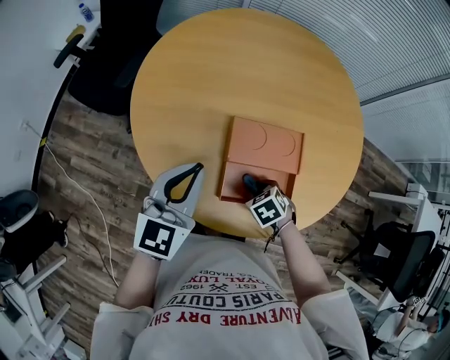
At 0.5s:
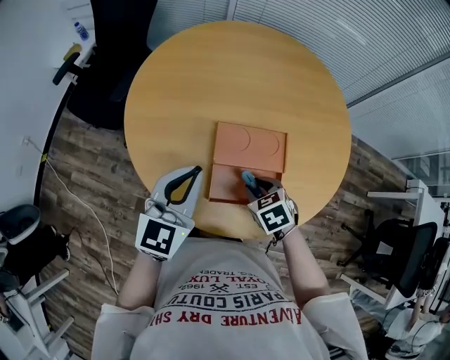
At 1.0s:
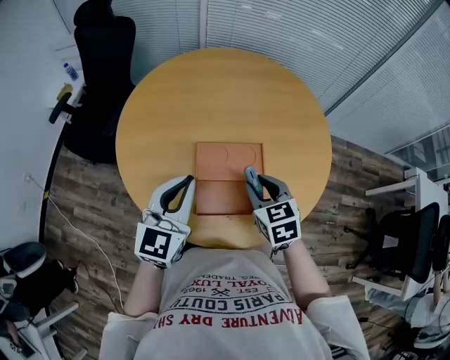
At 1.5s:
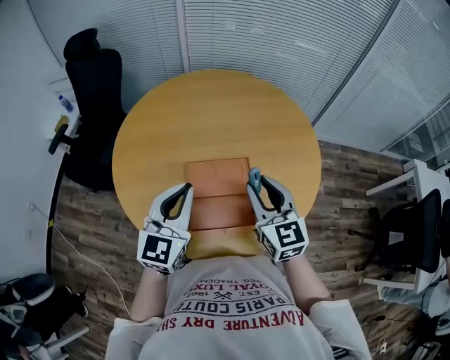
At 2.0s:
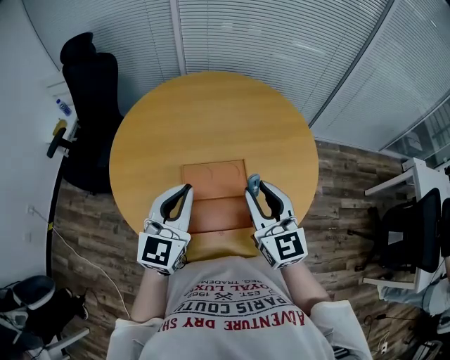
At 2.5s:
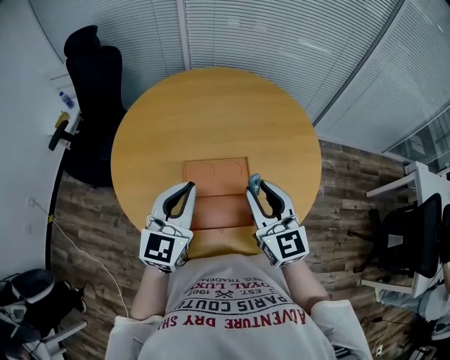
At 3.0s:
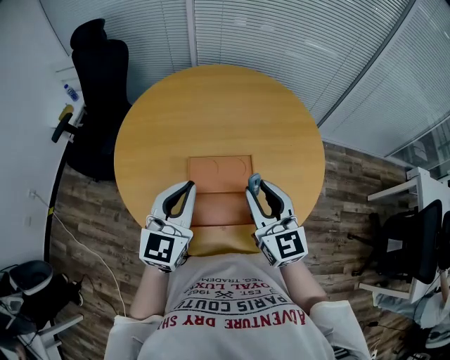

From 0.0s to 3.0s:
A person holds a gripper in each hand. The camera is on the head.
From 0.0s to 1.5s: The right gripper is displaced upward by approximately 30 cm, and tips its fingers upward by roughly 60 degrees. The left gripper moves approximately 15 cm.
From 1.5s to 3.0s: The grippers make only small movements.

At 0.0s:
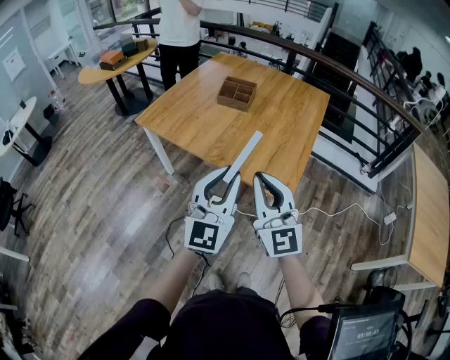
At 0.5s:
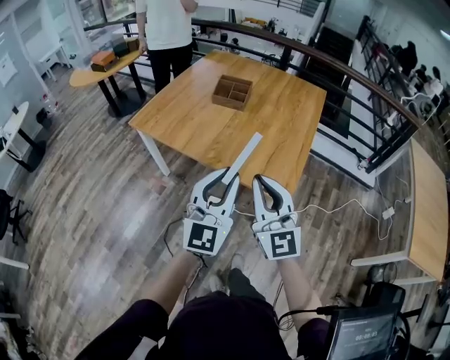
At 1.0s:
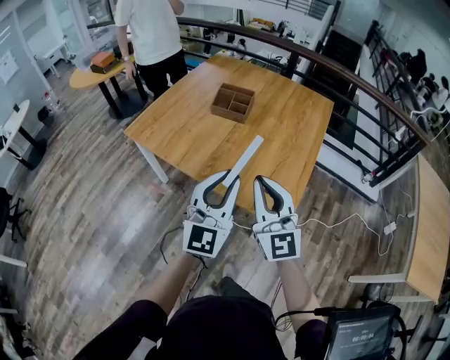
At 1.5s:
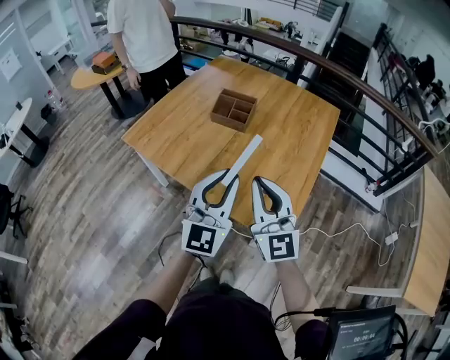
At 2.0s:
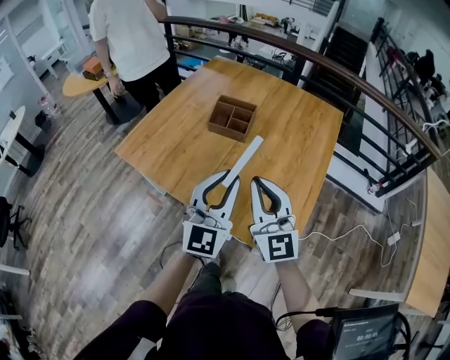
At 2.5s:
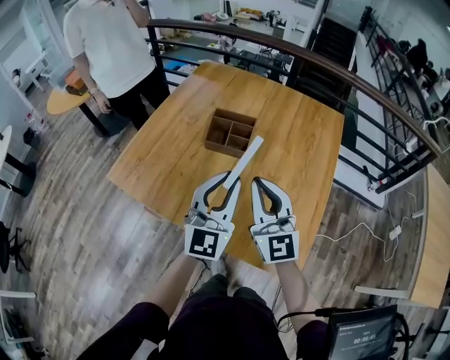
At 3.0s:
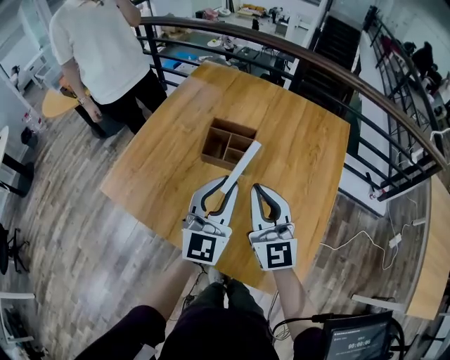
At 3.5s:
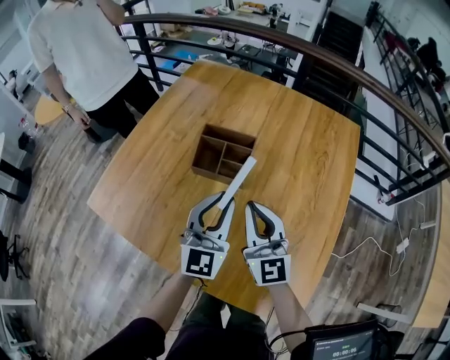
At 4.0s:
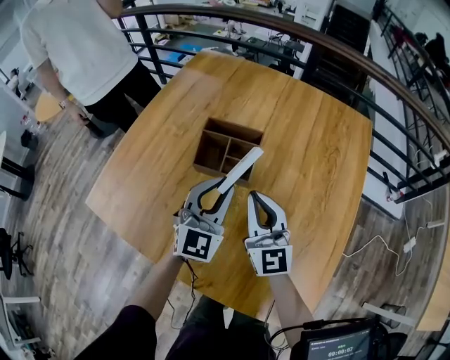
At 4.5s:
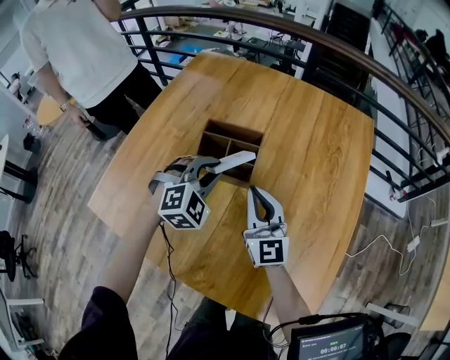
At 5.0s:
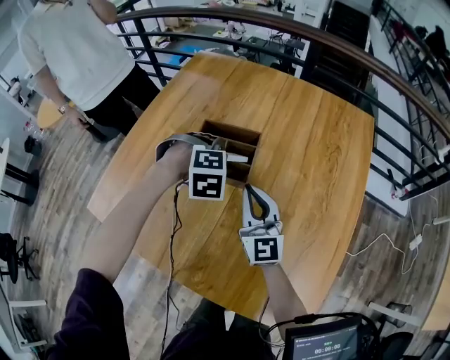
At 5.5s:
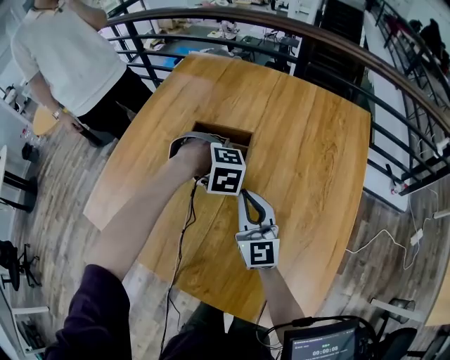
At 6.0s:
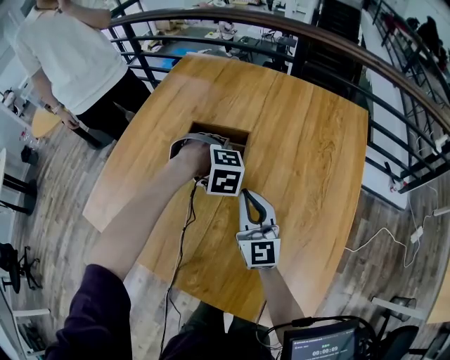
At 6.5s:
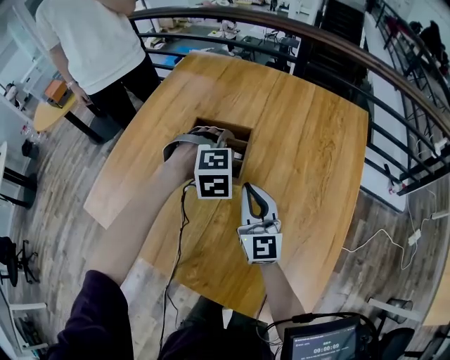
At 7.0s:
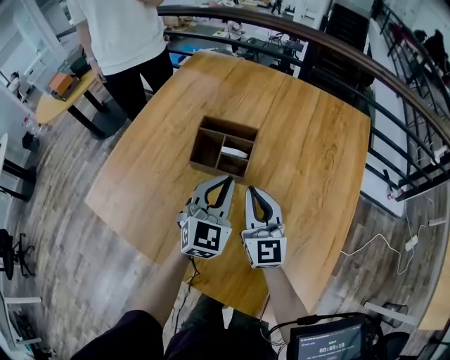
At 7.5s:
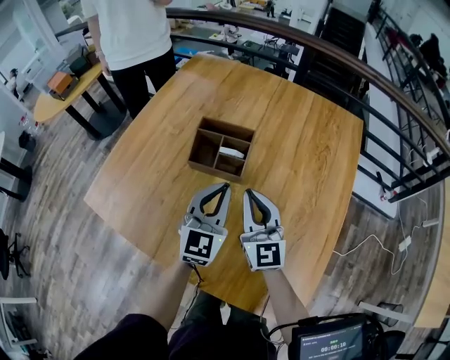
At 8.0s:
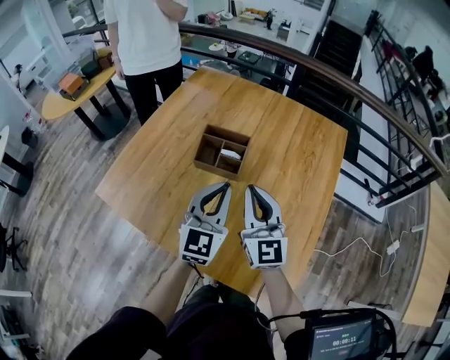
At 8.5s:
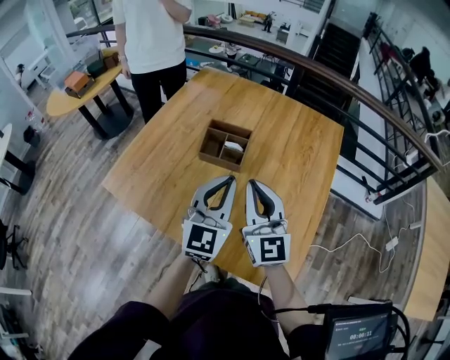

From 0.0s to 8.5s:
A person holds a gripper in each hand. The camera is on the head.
From 0.0s to 2.0s: Both grippers travel together forward, approximately 30 cm.
From 2.0s to 4.0s: Both grippers travel together forward and downward, roughly 40 cm.
From 4.0s to 6.5s: The left gripper goes about 10 cm forward, downward and to the right, points its fingers roughly 50 degrees further downward, and opens its fingers, while the right gripper moves some 5 cm.
From 6.5s to 8.5s: The left gripper goes some 35 cm backward and upward, angles its fingers upward, by approximately 60 degrees, and closes, while the right gripper is displaced upward and backward by roughly 25 cm.

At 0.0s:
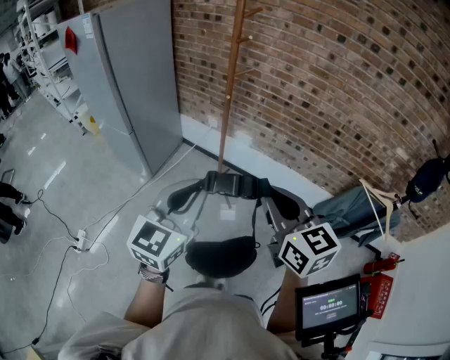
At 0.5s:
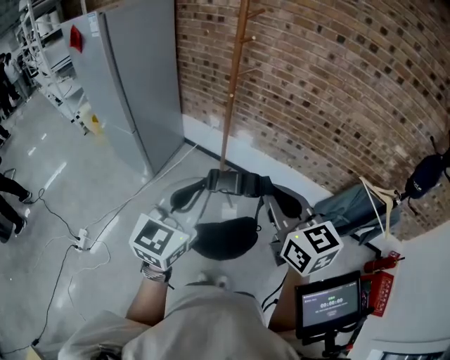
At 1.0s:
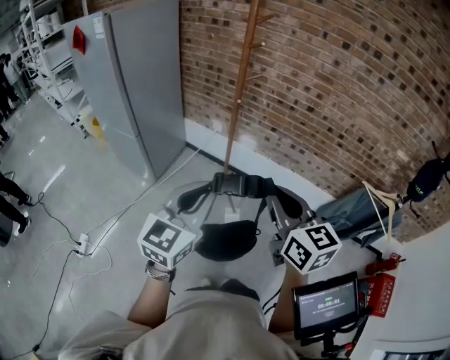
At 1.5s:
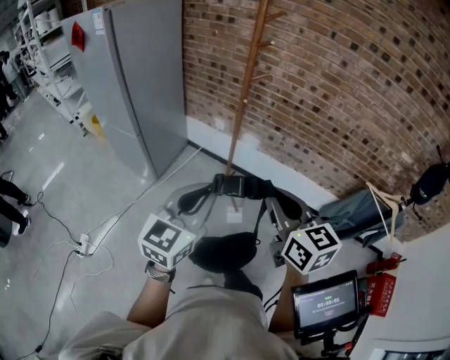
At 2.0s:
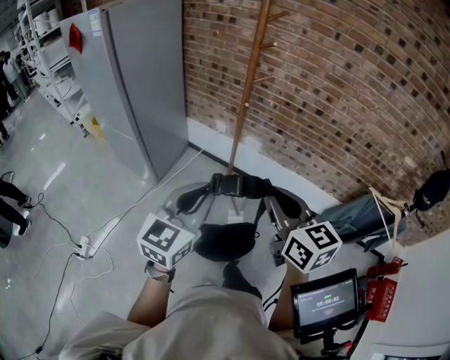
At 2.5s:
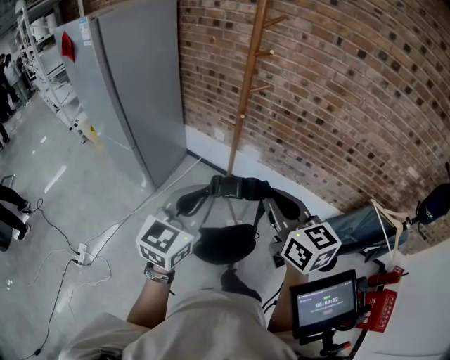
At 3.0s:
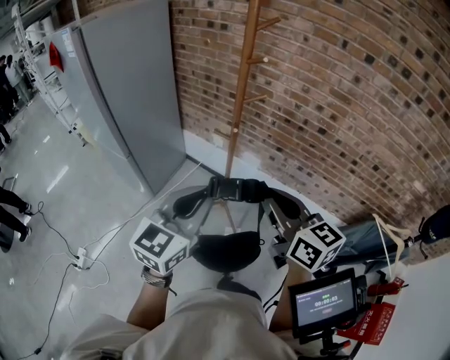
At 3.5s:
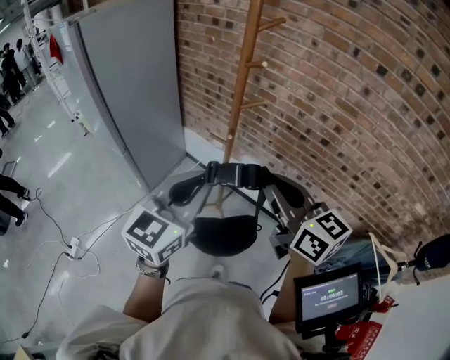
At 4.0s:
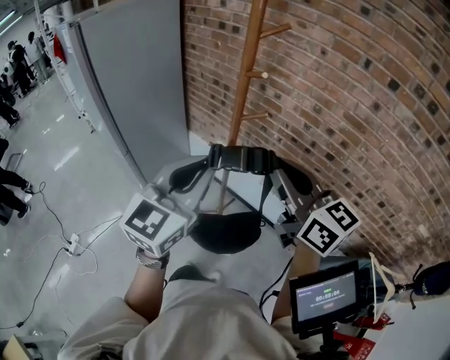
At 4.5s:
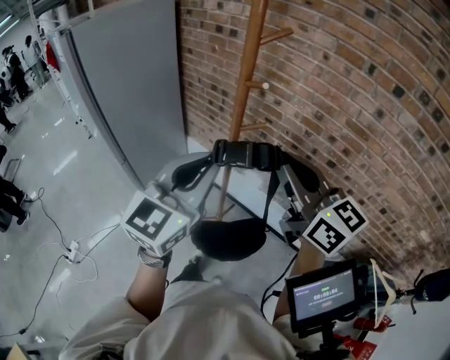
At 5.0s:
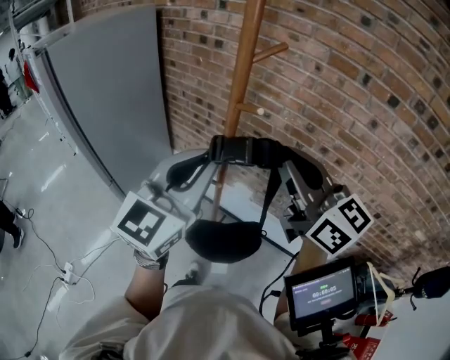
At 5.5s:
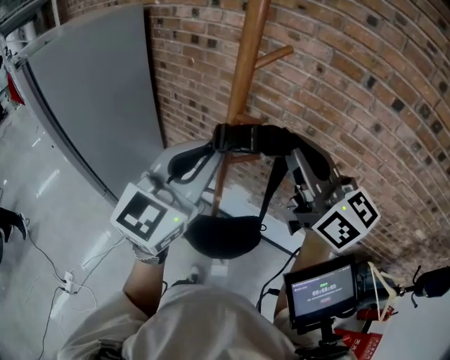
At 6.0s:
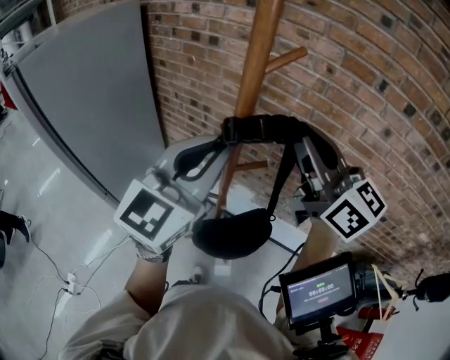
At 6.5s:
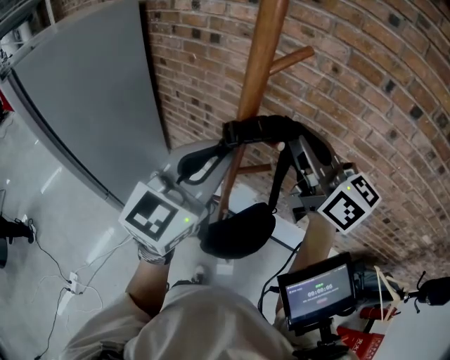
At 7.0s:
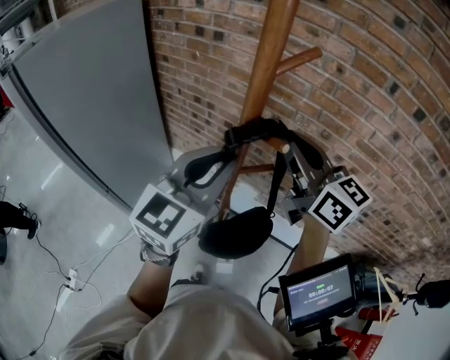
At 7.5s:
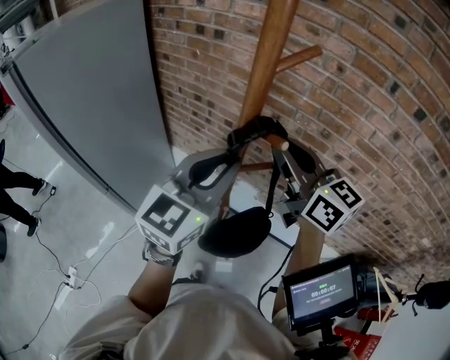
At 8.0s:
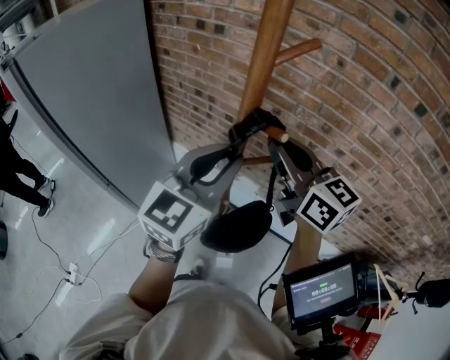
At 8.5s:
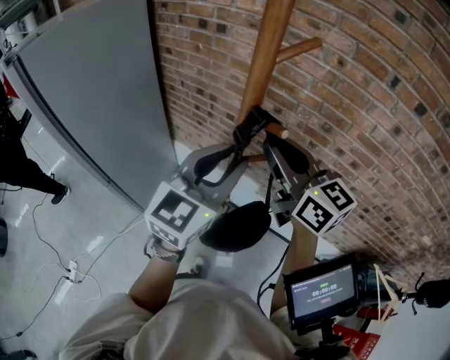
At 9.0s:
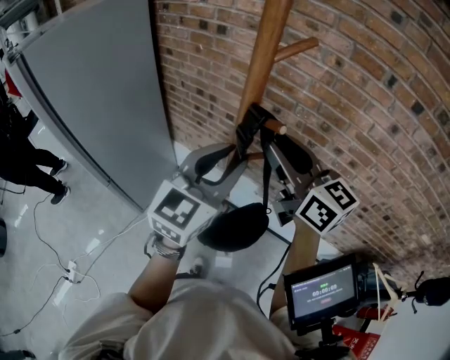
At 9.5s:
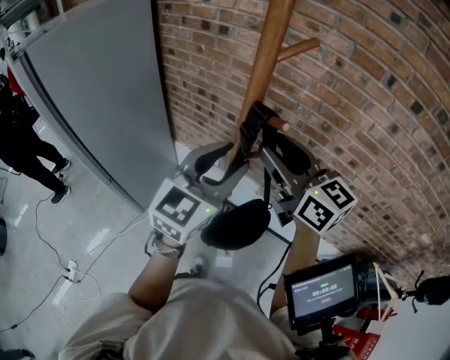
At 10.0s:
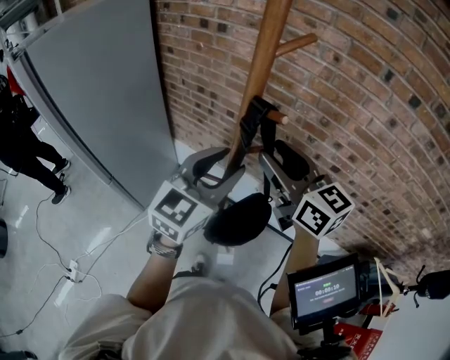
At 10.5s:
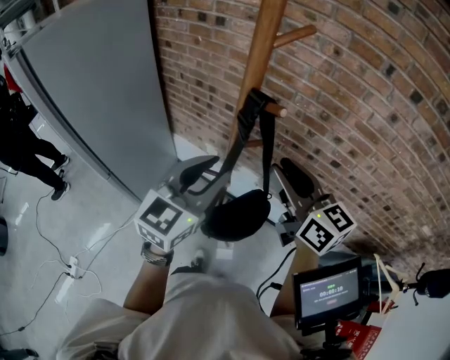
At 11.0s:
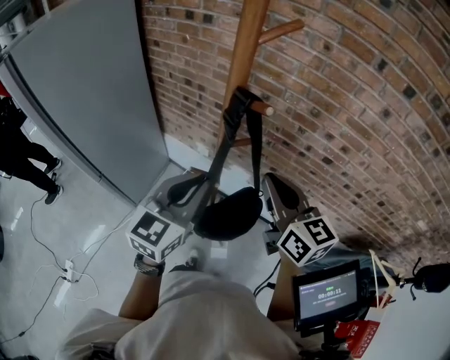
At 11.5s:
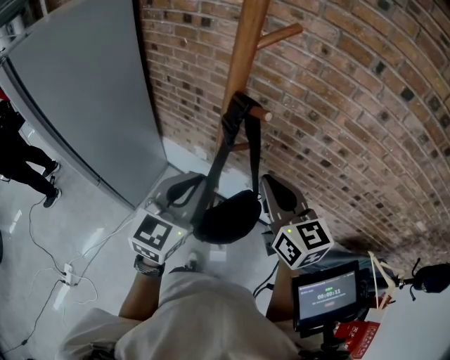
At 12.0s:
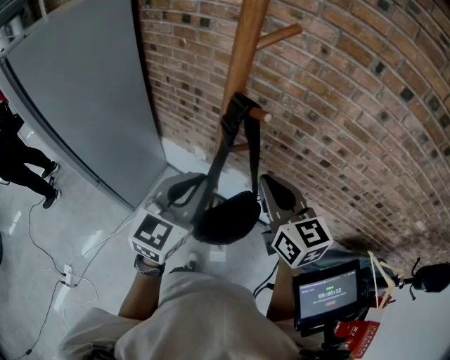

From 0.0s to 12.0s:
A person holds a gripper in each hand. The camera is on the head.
From 0.0s to 2.0s: The grippers both shift to the left by about 5 cm.
From 2.0s to 4.0s: The right gripper is displaced forward by approximately 25 cm, and swivels some 20 degrees, while the left gripper shifts some 25 cm forward and to the right.
From 4.0s to 6.0s: The left gripper is displaced forward by approximately 20 cm, while the right gripper travels forward and upward by some 20 cm.
From 6.0s to 8.0s: Both grippers move downward, some 10 cm.
From 8.0s to 10.0s: The left gripper opens up. Meanwhile the right gripper opens its fingers.
From 10.0s to 12.0s: The right gripper goes about 5 cm downward, and closes. The left gripper shifts by roughly 5 cm, and closes its fingers.

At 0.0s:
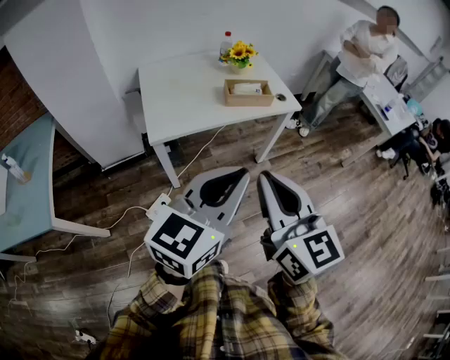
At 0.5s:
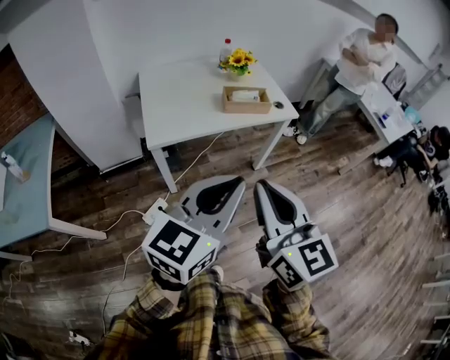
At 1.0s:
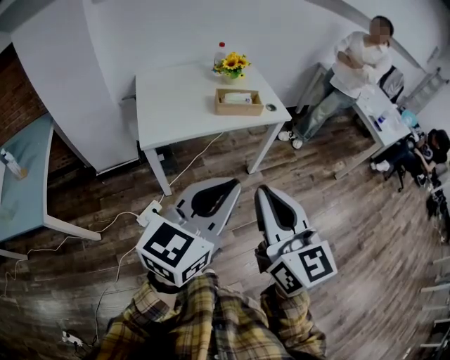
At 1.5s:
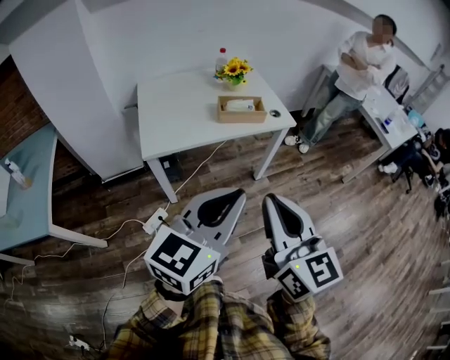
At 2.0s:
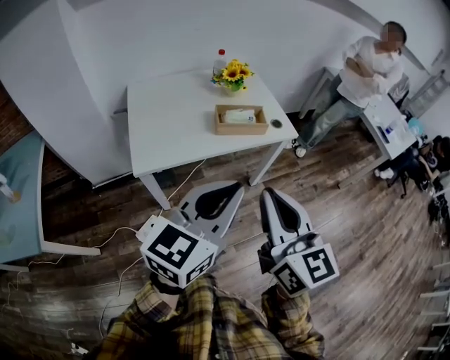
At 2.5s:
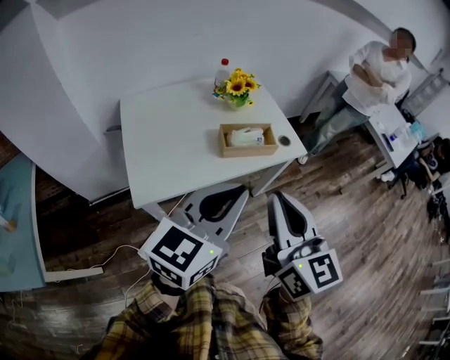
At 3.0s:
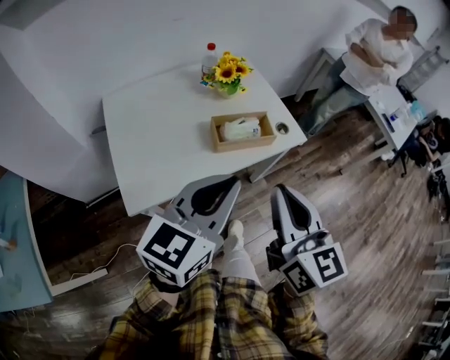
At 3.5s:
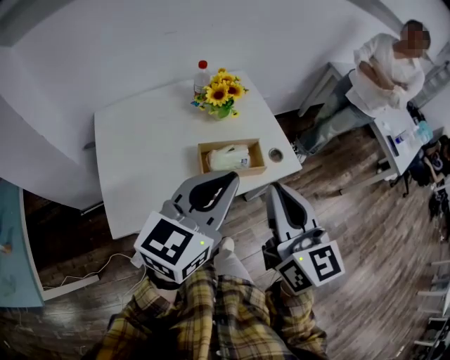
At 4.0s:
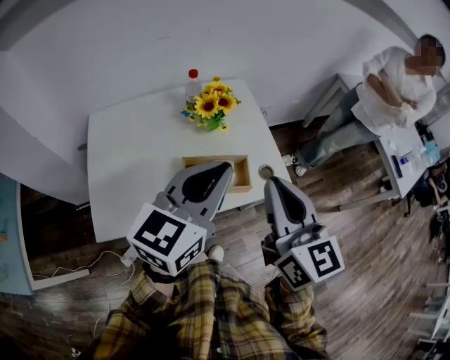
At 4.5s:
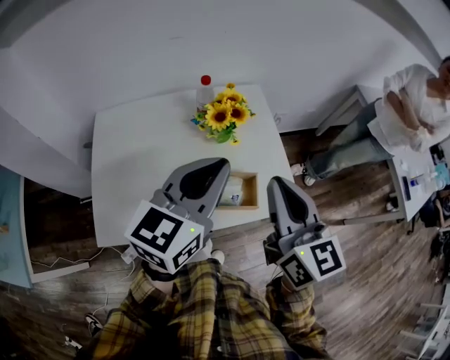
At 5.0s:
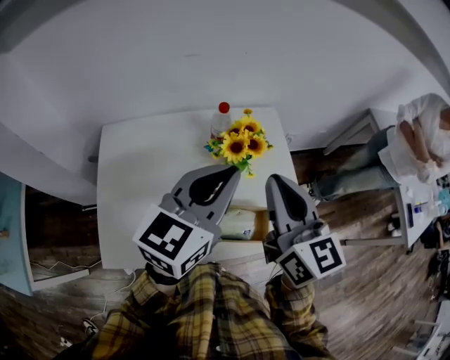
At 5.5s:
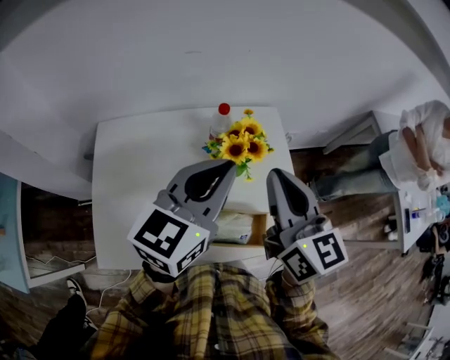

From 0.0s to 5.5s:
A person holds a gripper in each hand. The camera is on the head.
From 0.0s to 2.0s: The grippers both shift forward by roughly 10 cm.
From 2.0s to 3.5s: Both grippers move forward, about 25 cm.
From 3.5s to 5.5s: The two grippers go roughly 25 cm forward.
